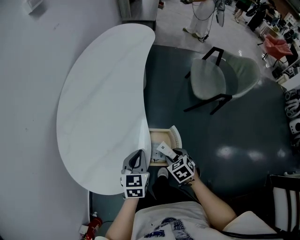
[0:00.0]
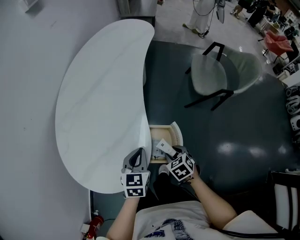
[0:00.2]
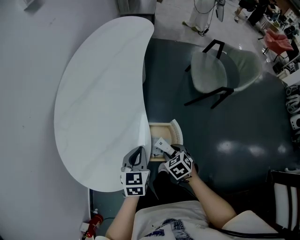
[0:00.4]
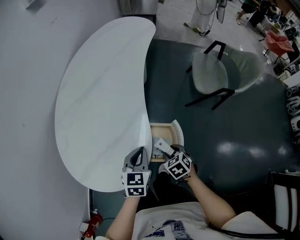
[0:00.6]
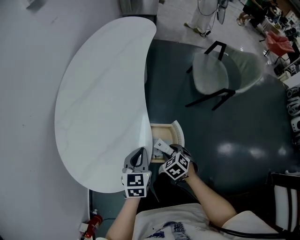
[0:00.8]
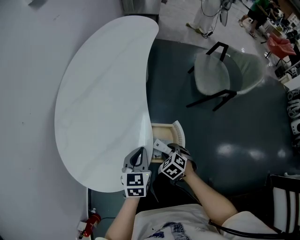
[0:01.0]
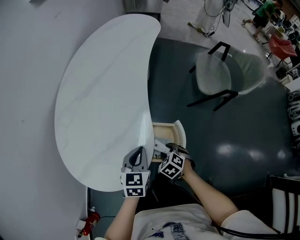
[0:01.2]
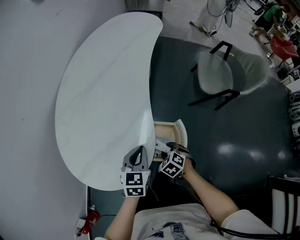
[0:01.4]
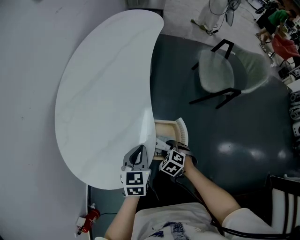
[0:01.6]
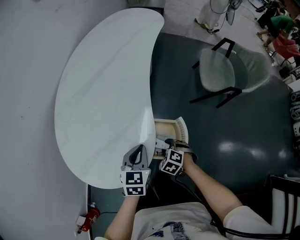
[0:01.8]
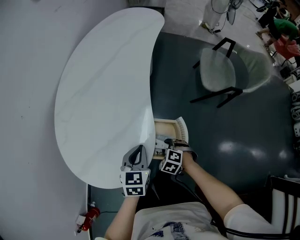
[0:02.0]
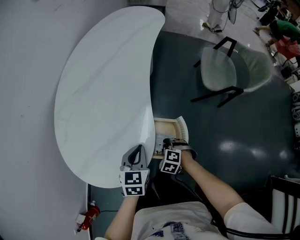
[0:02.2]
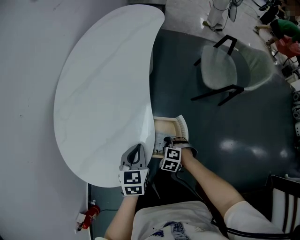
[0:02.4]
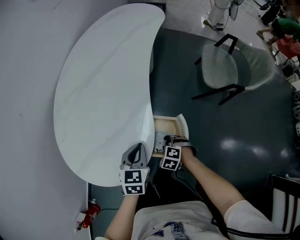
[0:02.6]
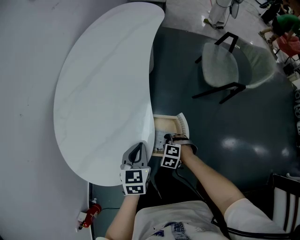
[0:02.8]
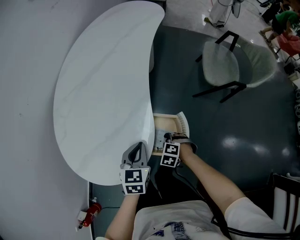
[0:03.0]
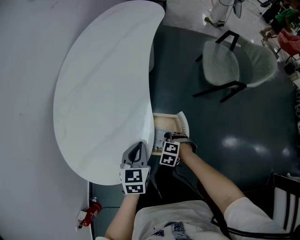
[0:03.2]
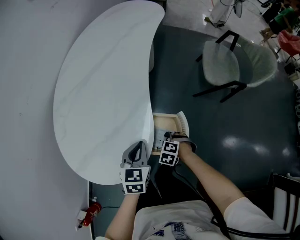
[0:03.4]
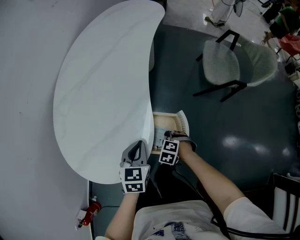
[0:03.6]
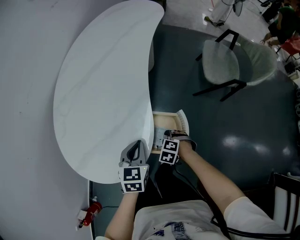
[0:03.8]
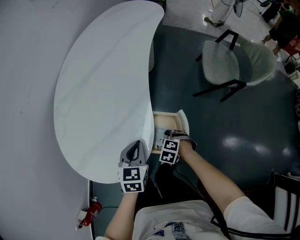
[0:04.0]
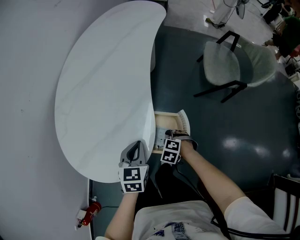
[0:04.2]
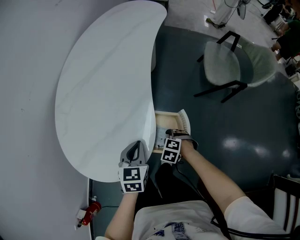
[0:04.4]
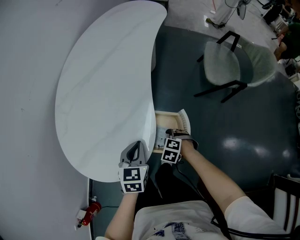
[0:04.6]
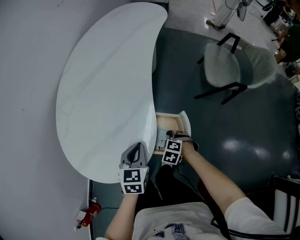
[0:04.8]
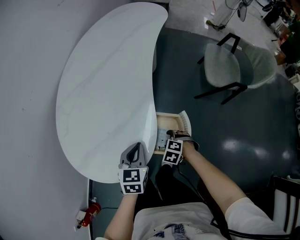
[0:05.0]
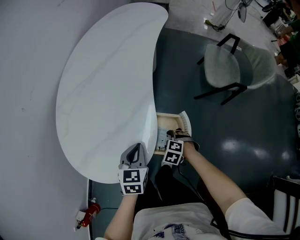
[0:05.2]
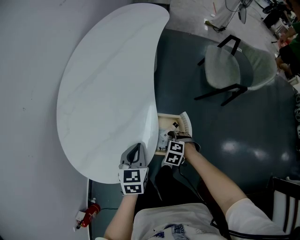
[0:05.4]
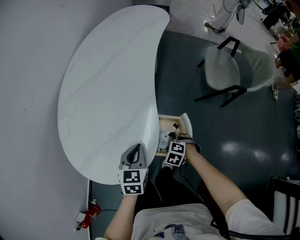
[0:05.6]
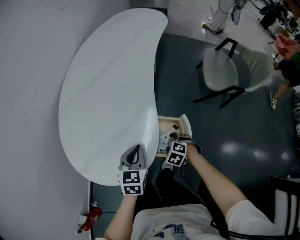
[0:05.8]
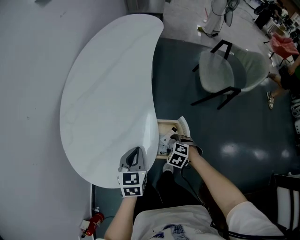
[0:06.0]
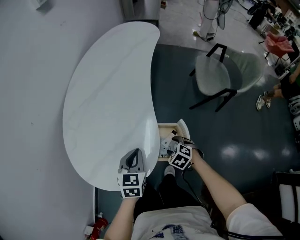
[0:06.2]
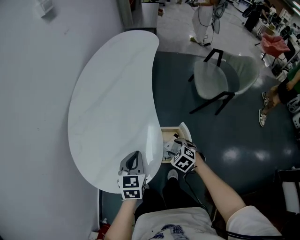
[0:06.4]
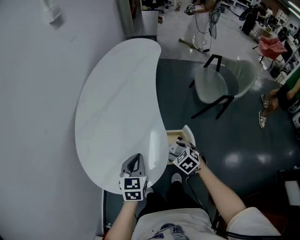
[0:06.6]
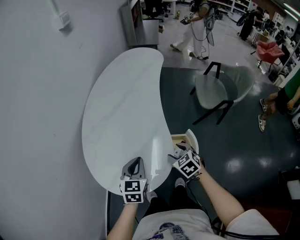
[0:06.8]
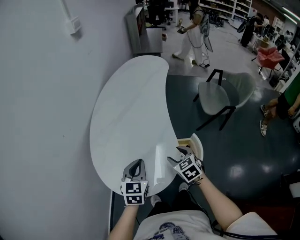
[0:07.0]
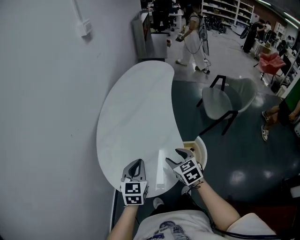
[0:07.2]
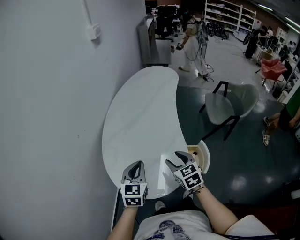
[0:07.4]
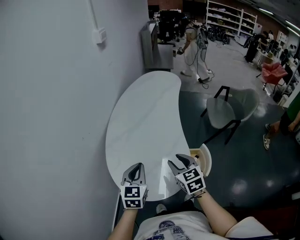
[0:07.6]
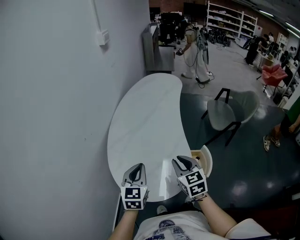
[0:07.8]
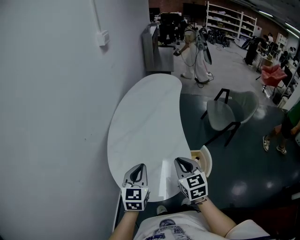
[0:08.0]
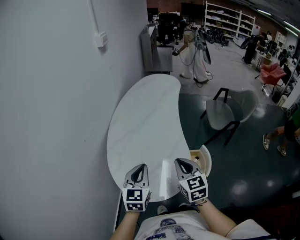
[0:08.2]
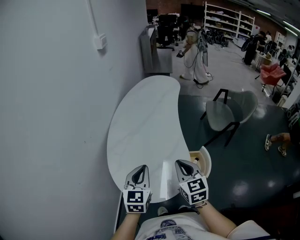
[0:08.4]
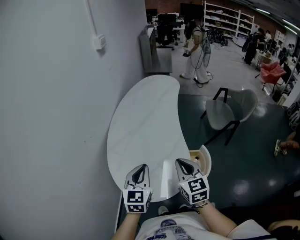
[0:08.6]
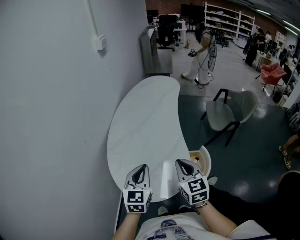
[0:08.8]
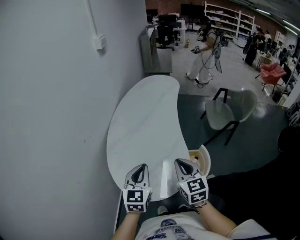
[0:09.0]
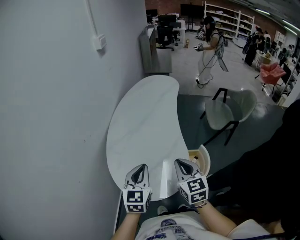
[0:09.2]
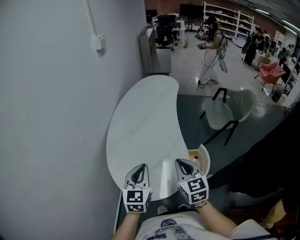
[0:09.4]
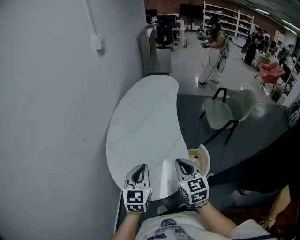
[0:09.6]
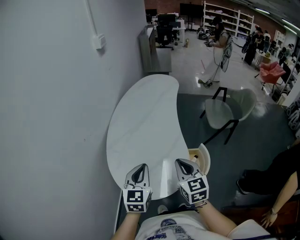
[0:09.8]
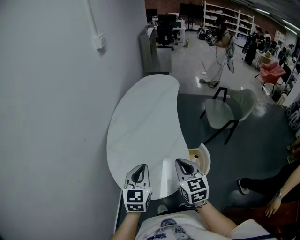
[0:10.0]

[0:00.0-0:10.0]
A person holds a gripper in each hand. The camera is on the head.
0:00.0 to 0:01.4: The right gripper moves downward, some 5 cm, and rotates roughly 20 degrees.
0:01.4 to 0:02.8: The right gripper moves downward, roughly 5 cm, and swivels about 30 degrees.
0:02.8 to 0:04.2: The two grippers keep their place.
0:04.2 to 0:05.8: The grippers make only small movements.
0:05.8 to 0:07.2: The right gripper shifts some 35 cm upward and to the left, and points its fingers about 40 degrees further upward; the left gripper is displaced to the left and upward by roughly 25 cm.
0:07.2 to 0:08.6: The left gripper is displaced upward by about 10 cm. Meanwhile the right gripper travels upward by approximately 15 cm, rotates about 20 degrees, and closes.
0:08.6 to 0:10.0: The grippers move only a little.

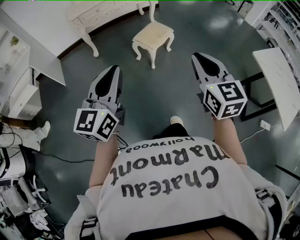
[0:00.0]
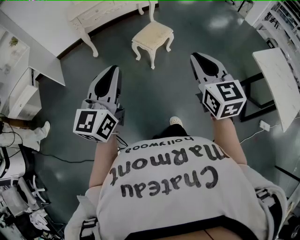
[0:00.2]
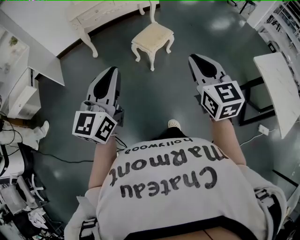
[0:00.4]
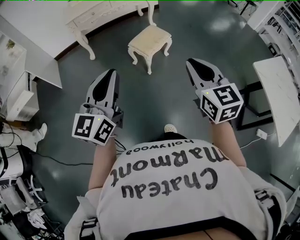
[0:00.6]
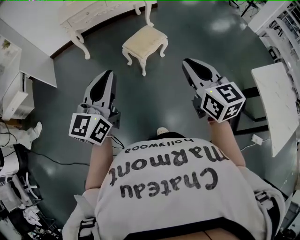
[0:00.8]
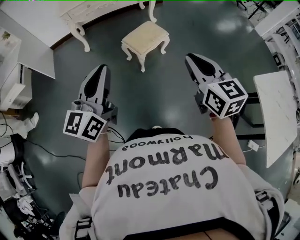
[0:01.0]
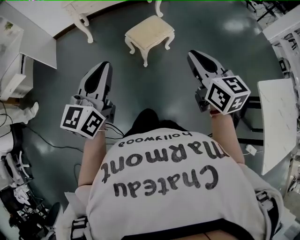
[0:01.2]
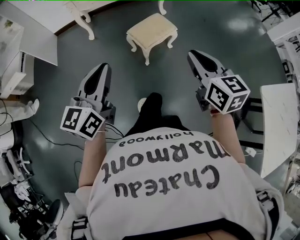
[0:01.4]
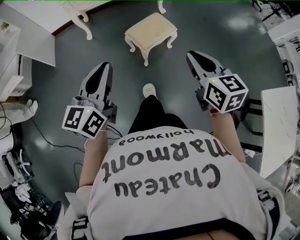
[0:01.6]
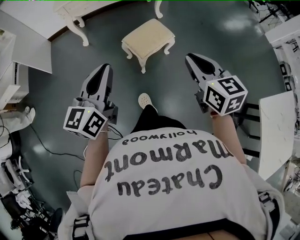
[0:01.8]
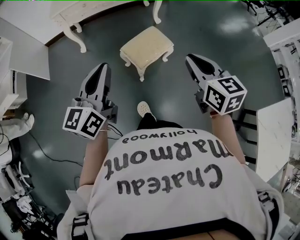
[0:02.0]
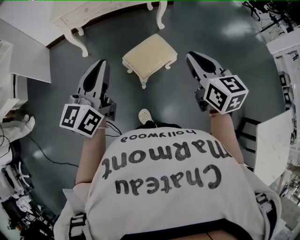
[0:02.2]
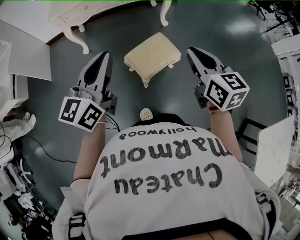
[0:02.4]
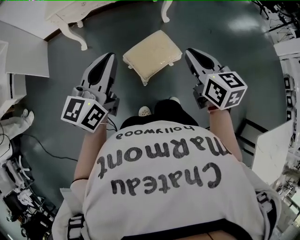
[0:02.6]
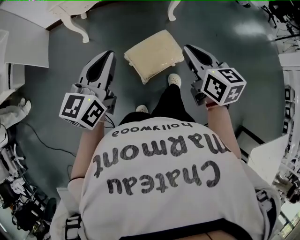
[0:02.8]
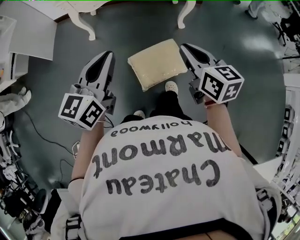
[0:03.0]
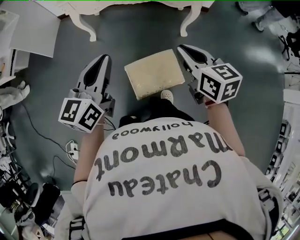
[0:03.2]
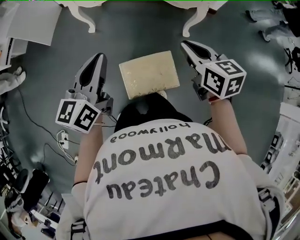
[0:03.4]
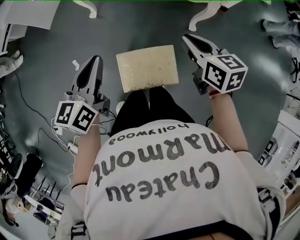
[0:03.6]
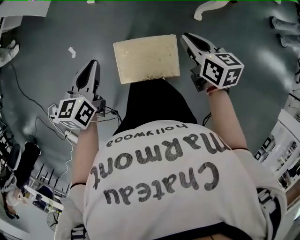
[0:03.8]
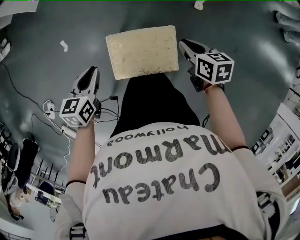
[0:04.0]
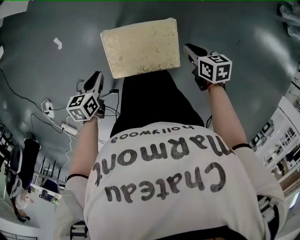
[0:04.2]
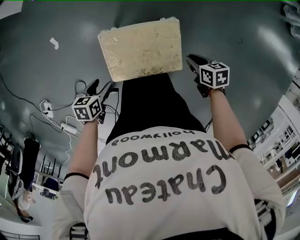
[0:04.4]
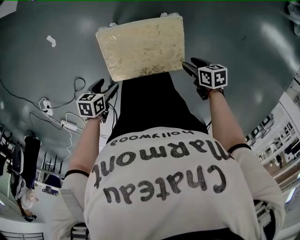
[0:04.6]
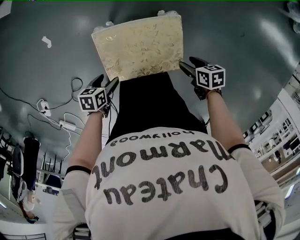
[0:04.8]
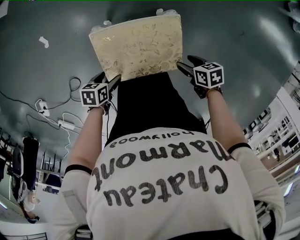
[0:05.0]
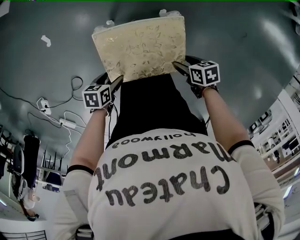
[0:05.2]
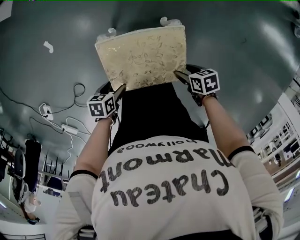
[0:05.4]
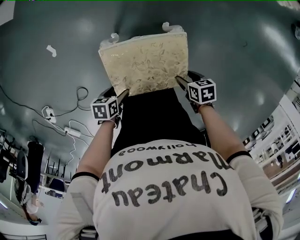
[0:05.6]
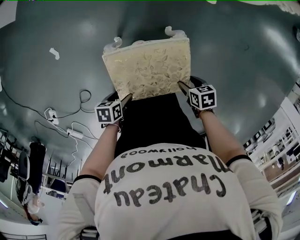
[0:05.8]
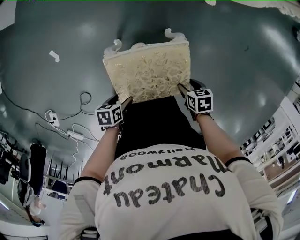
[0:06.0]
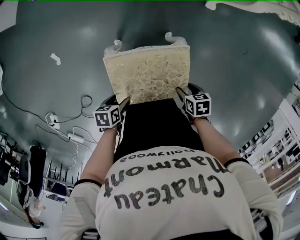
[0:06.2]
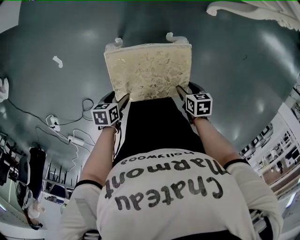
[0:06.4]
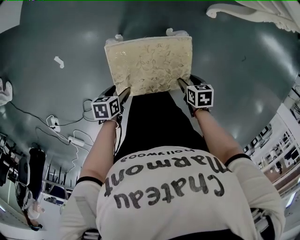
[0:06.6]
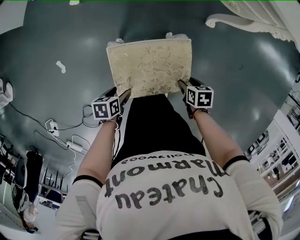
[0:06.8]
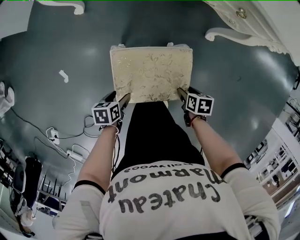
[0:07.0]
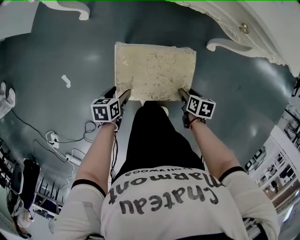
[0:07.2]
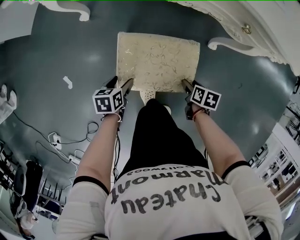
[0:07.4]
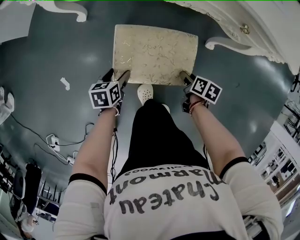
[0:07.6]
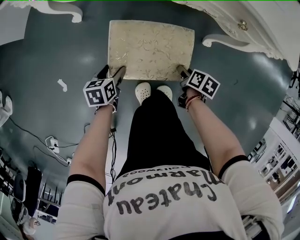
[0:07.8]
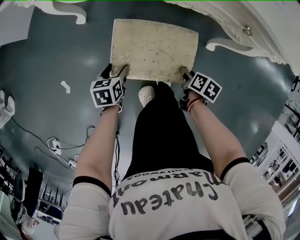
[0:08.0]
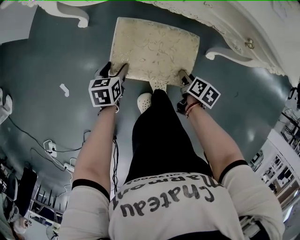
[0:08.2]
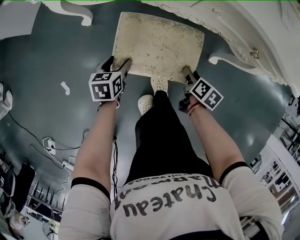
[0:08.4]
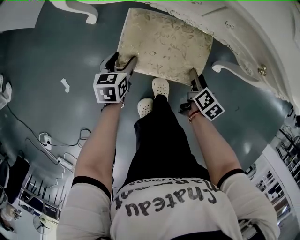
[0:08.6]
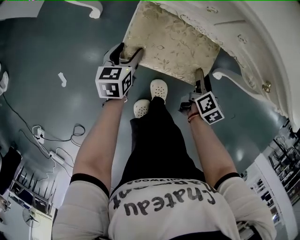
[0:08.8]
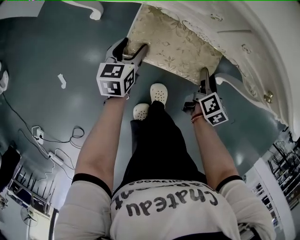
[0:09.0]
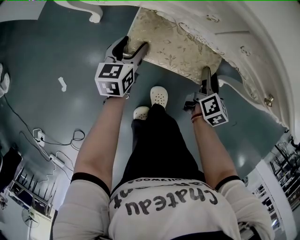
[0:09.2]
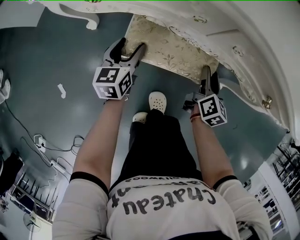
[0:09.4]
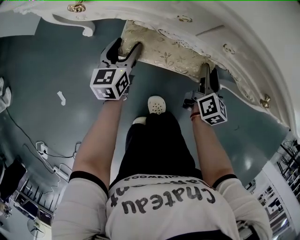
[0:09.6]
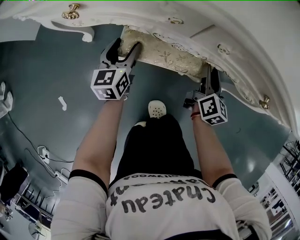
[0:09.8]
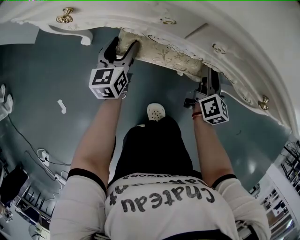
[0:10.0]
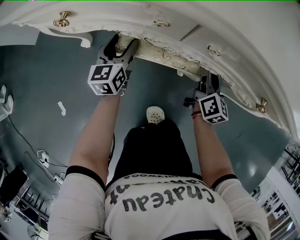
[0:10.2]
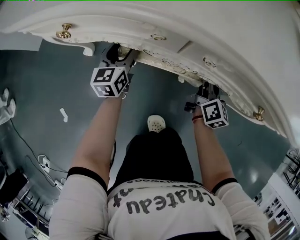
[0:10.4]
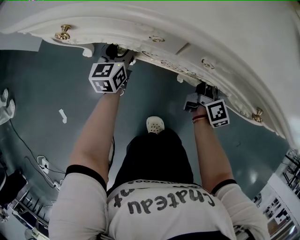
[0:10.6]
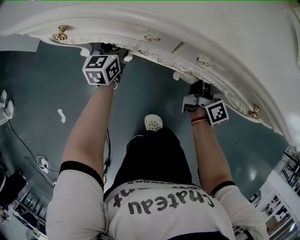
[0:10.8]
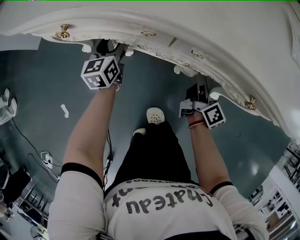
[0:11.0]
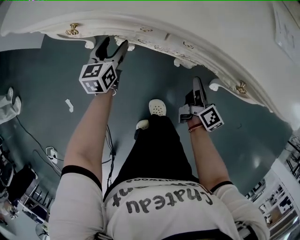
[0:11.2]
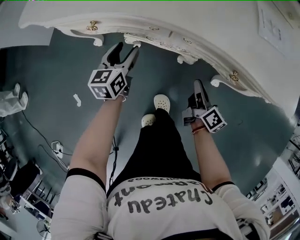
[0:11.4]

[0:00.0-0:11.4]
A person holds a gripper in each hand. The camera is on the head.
0:00.0 to 0:01.4: The two grippers go roughly 25 cm forward and to the right. The right gripper rotates some 20 degrees.
0:01.4 to 0:02.8: Both grippers move forward, roughly 40 cm.
0:02.8 to 0:04.2: The grippers both shift downward by some 40 cm. The left gripper tilts its fingers some 50 degrees downward. The right gripper tilts its fingers some 30 degrees downward.
0:04.2 to 0:05.6: The grippers both shift downward by roughly 15 cm. The right gripper rotates approximately 20 degrees, and opens, while the left gripper turns by approximately 30 degrees, and opens.
0:05.6 to 0:07.2: The left gripper changes place by some 25 cm, while the right gripper changes place by about 20 cm, and changes its angle by some 20 degrees.
0:07.2 to 0:08.6: The two grippers go about 20 cm forward. The right gripper swivels about 30 degrees. Meanwhile the left gripper turns by some 30 degrees.
0:08.6 to 0:10.0: The two grippers go some 15 cm forward. The left gripper swivels approximately 30 degrees. Meanwhile the right gripper tilts its fingers roughly 30 degrees upward.
0:10.0 to 0:11.4: The left gripper shifts approximately 10 cm upward. The right gripper heads backward and upward, covering about 15 cm, rotates some 30 degrees, and closes up.

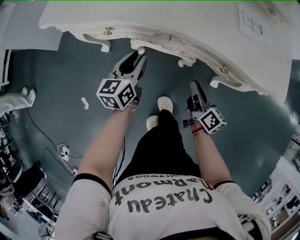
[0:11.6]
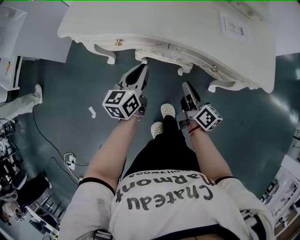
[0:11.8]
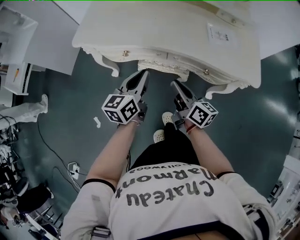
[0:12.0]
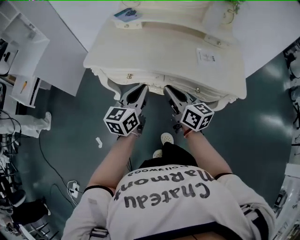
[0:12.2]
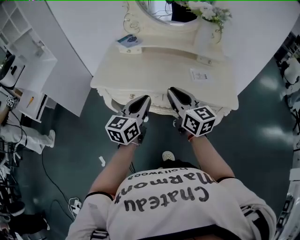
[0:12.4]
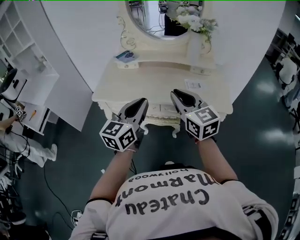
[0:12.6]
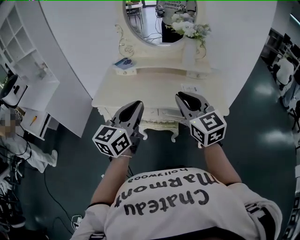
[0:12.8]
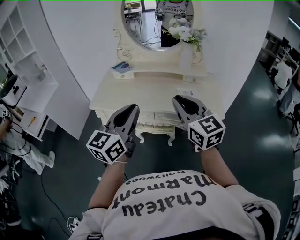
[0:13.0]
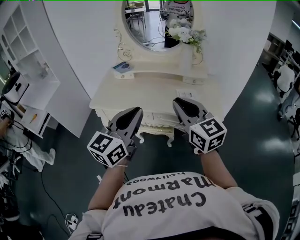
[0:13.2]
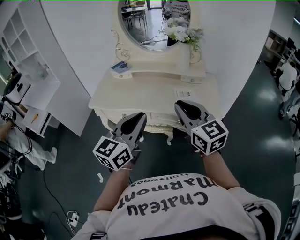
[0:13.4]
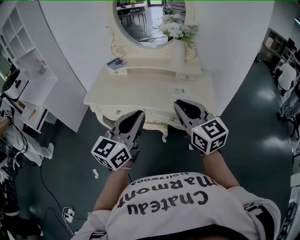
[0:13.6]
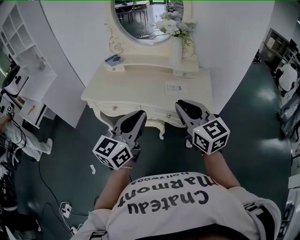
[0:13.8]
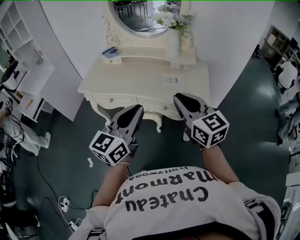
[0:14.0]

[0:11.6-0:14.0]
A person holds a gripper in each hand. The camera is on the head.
0:11.6 to 0:12.8: The two grippers go about 50 cm upward. The left gripper rotates approximately 30 degrees, and closes up; the right gripper twists some 60 degrees counterclockwise, seen from behind.
0:12.8 to 0:14.0: The right gripper shifts some 15 cm to the right, while the left gripper heads to the right and backward, covering some 15 cm.
